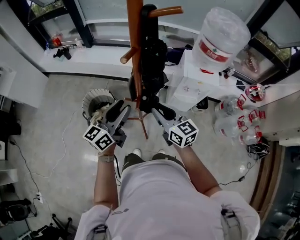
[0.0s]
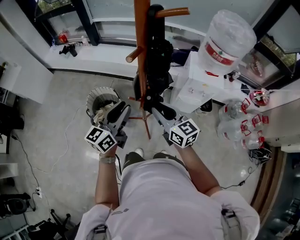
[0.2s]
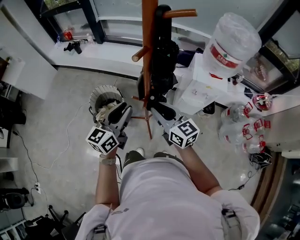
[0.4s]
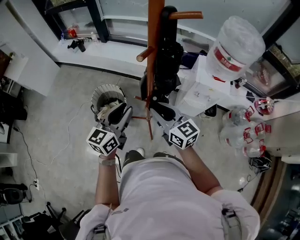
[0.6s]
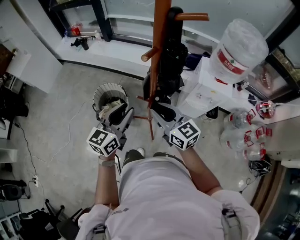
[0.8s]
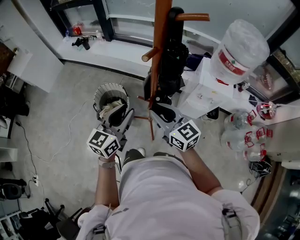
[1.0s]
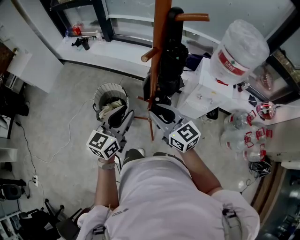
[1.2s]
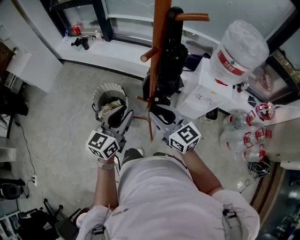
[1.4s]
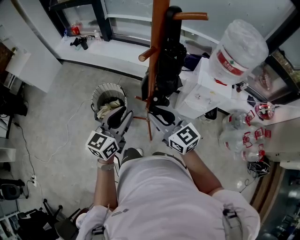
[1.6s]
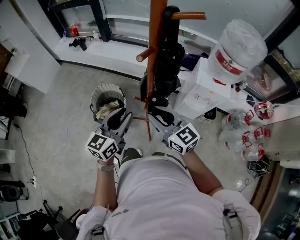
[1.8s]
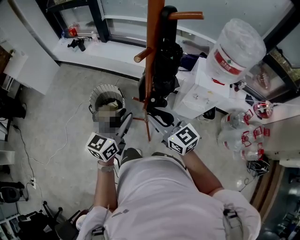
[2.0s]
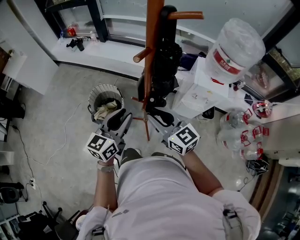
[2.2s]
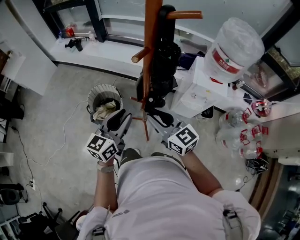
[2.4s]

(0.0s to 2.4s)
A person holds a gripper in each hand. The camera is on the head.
0.0s - 1.2s: The right gripper goes some 5 cm to the left.
1.2s - 2.4s: There are only small adjustments of the grippers.

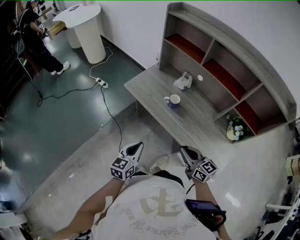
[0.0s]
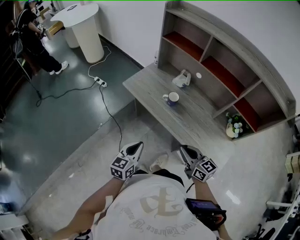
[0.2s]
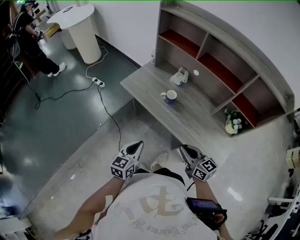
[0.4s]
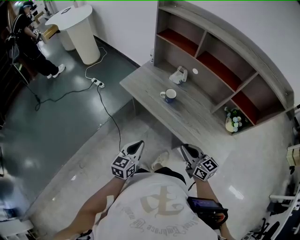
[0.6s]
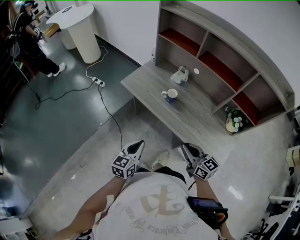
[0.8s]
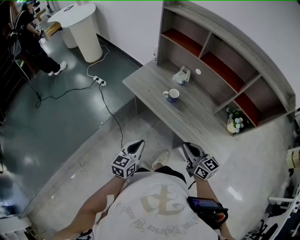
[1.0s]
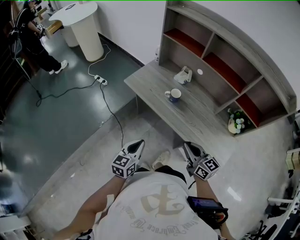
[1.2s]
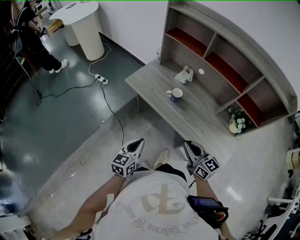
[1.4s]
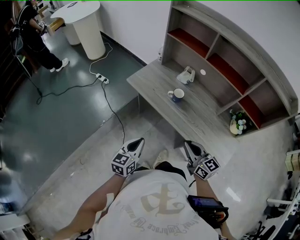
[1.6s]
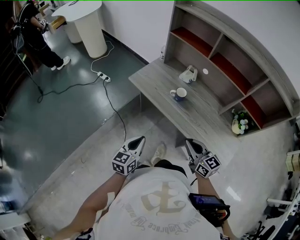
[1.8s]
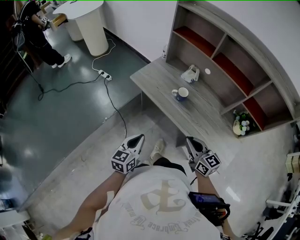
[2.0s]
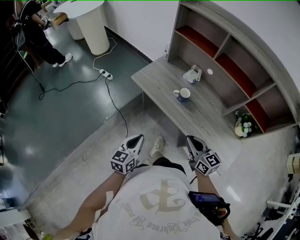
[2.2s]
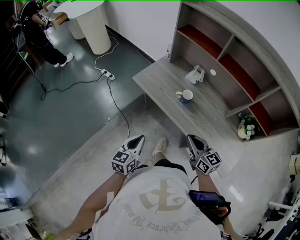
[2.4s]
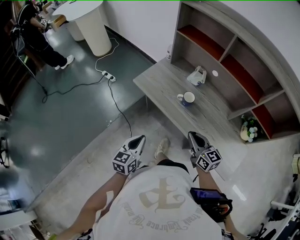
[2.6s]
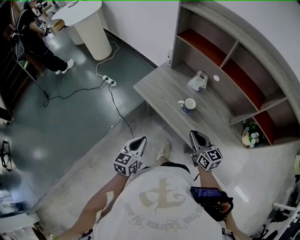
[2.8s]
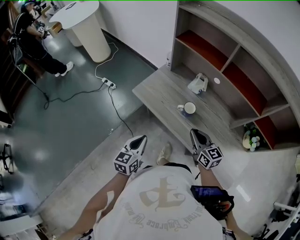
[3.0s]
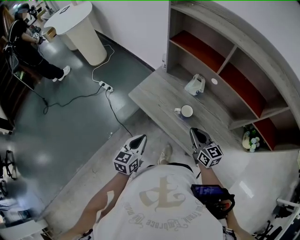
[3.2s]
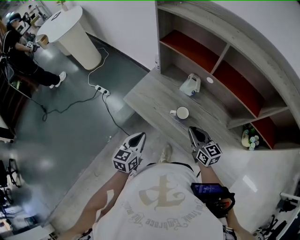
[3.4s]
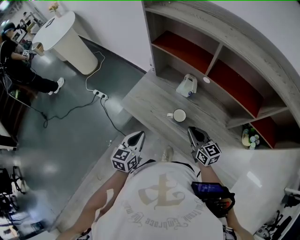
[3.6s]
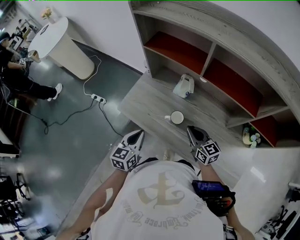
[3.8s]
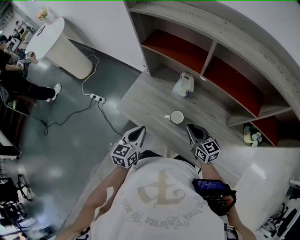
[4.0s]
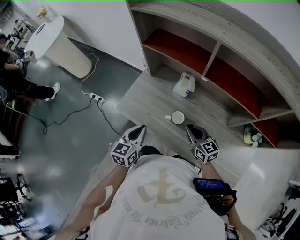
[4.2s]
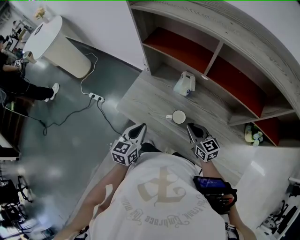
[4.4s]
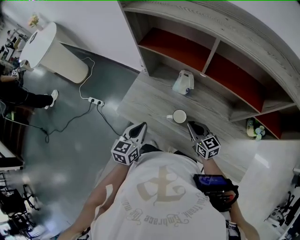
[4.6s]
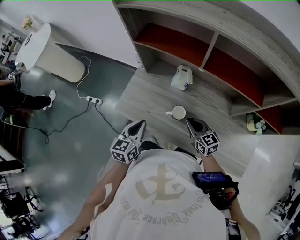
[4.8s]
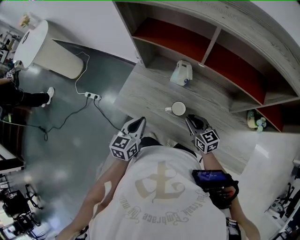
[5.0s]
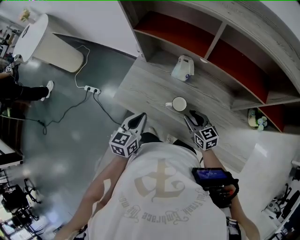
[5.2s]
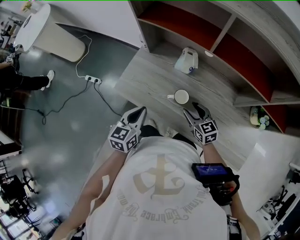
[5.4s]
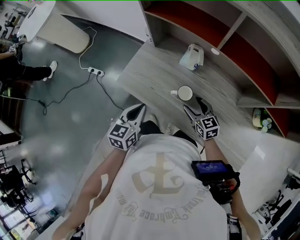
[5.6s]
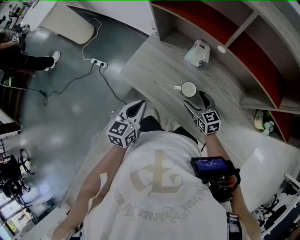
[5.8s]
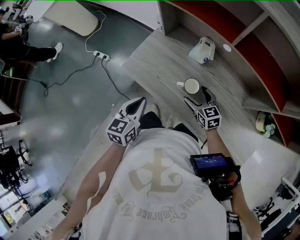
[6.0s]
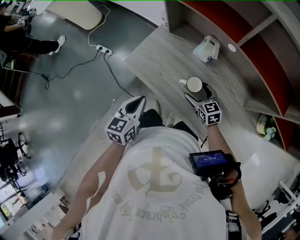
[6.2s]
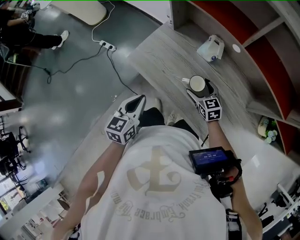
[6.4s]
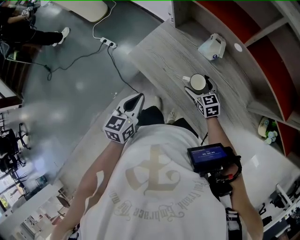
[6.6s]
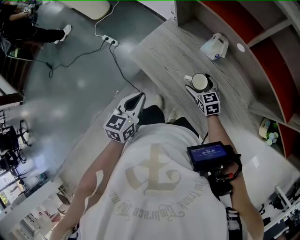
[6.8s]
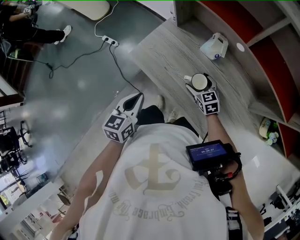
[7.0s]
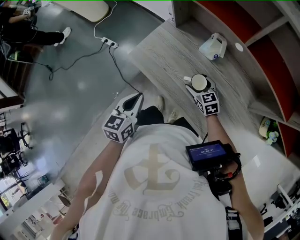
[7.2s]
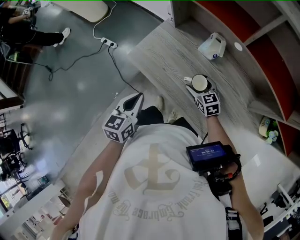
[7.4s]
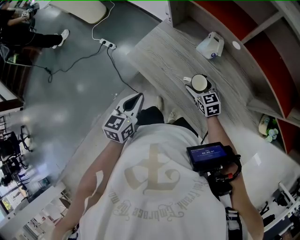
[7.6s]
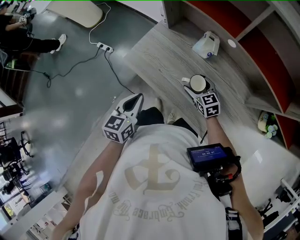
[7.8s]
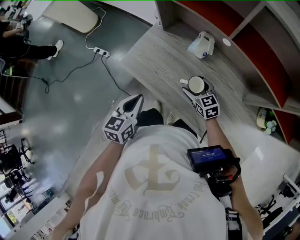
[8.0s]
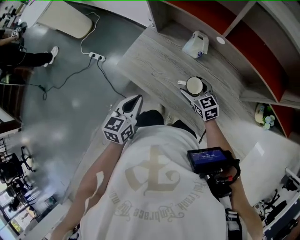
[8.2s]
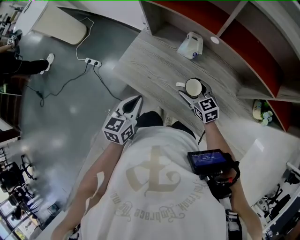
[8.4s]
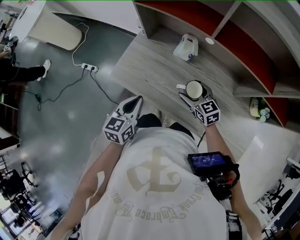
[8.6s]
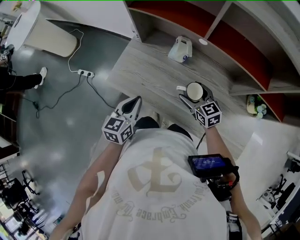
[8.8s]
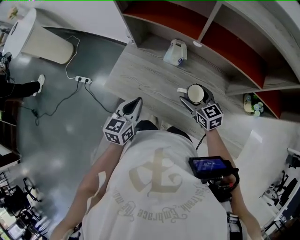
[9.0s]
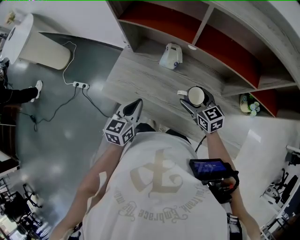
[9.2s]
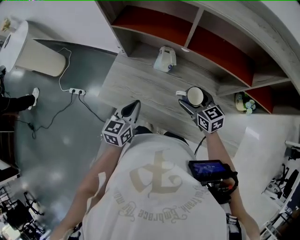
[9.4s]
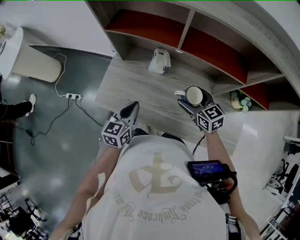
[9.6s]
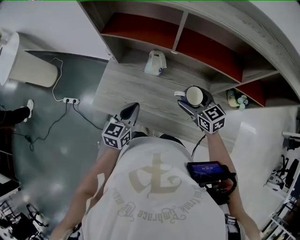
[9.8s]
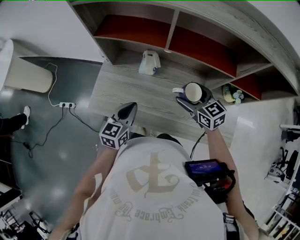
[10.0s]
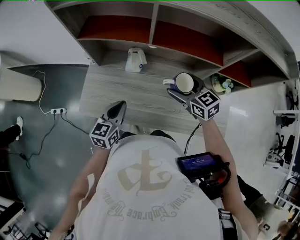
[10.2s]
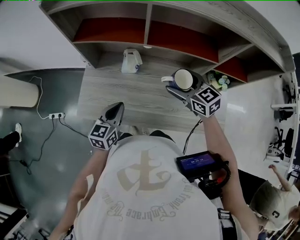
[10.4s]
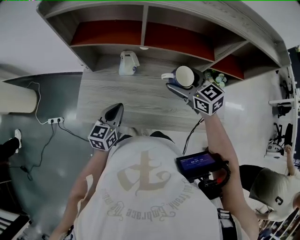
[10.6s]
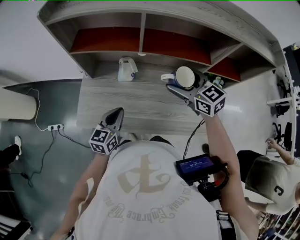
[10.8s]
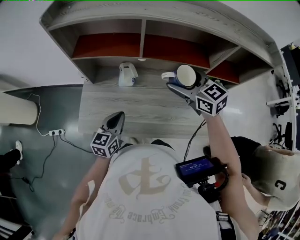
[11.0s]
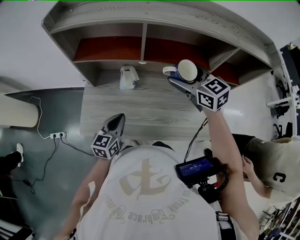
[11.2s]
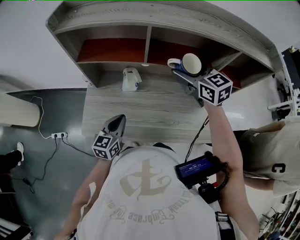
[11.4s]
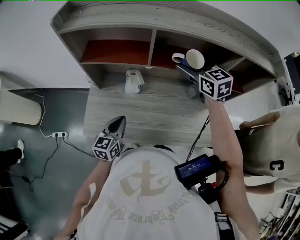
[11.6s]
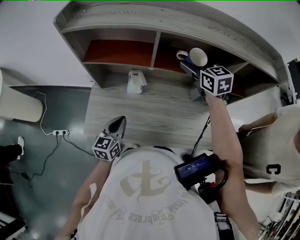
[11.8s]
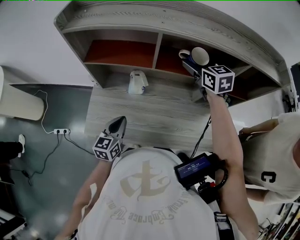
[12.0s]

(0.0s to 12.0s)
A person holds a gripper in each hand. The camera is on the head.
0.0s - 1.6s: There are only small adjustments of the grippers.
1.6s - 3.0s: The two grippers go roughly 20 cm forward.
3.0s - 4.4s: The right gripper is displaced forward, downward and to the right by approximately 15 cm, while the left gripper goes roughly 20 cm forward.
4.4s - 6.0s: The right gripper goes about 10 cm downward, and opens up. The left gripper changes place by some 5 cm.
7.6s - 9.0s: The left gripper is displaced to the right and forward by roughly 10 cm. Meanwhile the right gripper is displaced upward and to the right by approximately 15 cm.
9.0s - 10.4s: The right gripper travels upward and to the right by some 15 cm. Meanwhile the left gripper travels to the right by some 5 cm.
10.4s - 12.0s: The right gripper is displaced forward and upward by about 20 cm, and changes its angle by some 20 degrees.

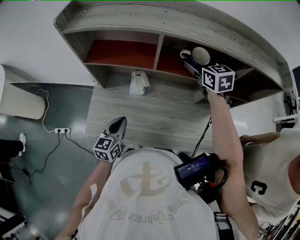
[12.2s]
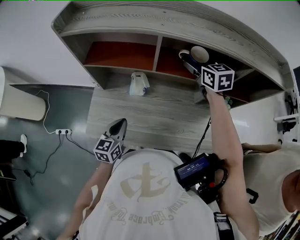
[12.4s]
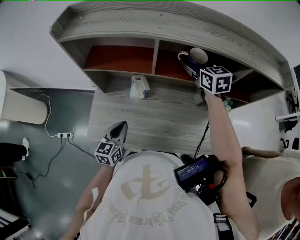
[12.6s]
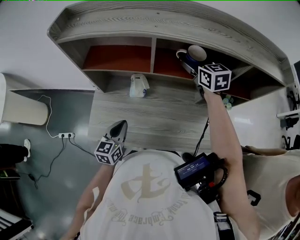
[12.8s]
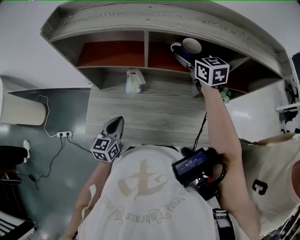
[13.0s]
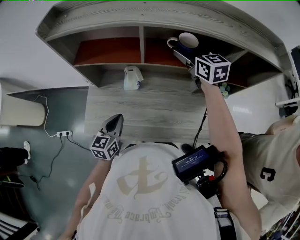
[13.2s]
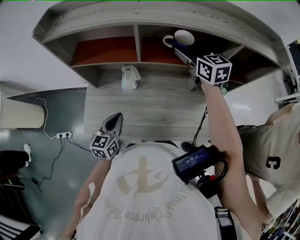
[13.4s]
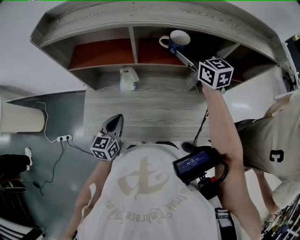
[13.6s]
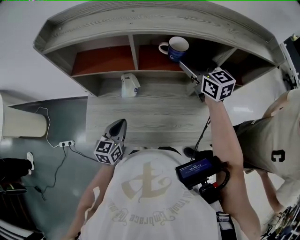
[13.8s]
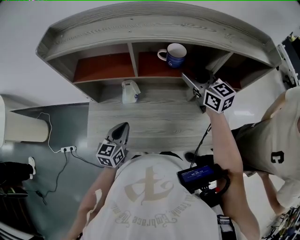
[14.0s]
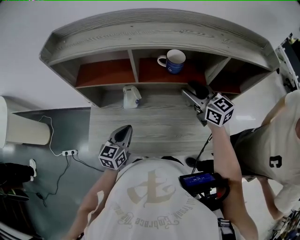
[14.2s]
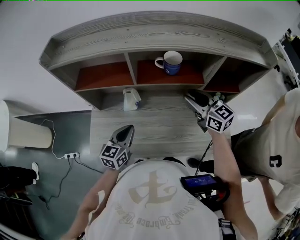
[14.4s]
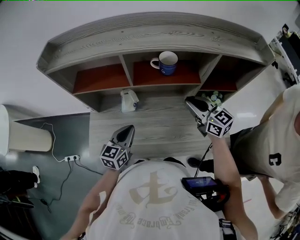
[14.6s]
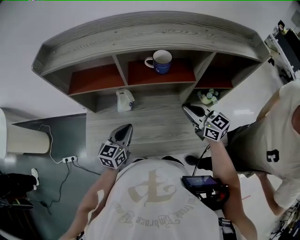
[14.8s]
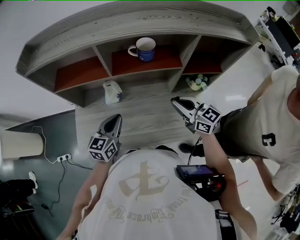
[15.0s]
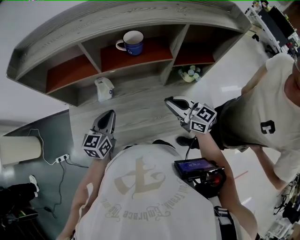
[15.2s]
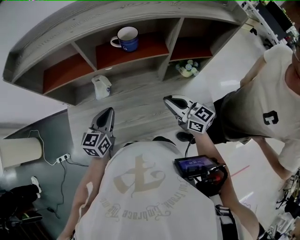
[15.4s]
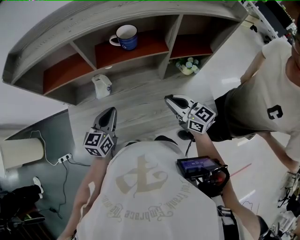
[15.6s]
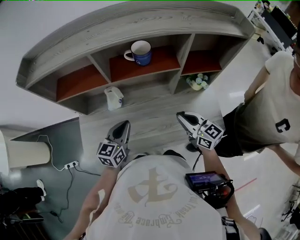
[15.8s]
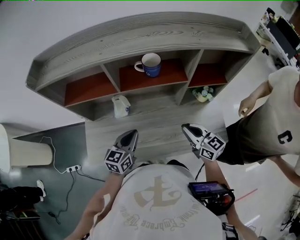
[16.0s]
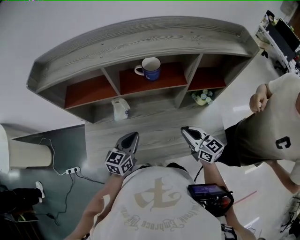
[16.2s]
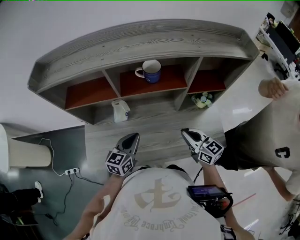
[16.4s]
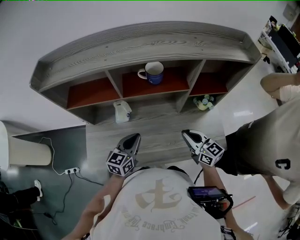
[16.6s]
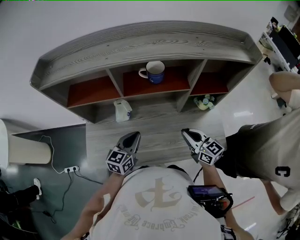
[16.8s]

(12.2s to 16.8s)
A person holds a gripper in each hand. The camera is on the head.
12.2s - 13.8s: The right gripper travels backward by some 5 cm.
13.8s - 15.2s: The left gripper heads to the right, covering roughly 10 cm; the right gripper heads backward and downward, covering some 20 cm, and closes up.
15.2s - 16.8s: The grippers move only a little.

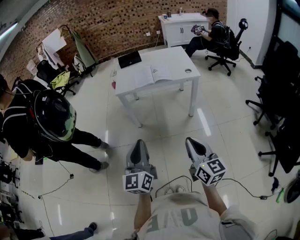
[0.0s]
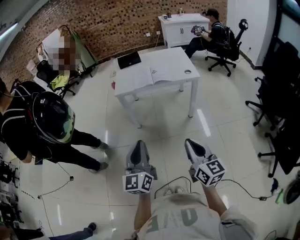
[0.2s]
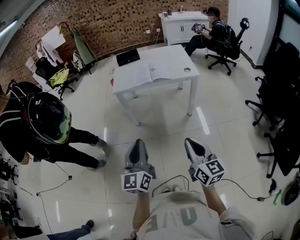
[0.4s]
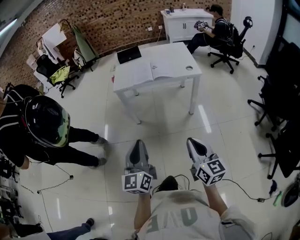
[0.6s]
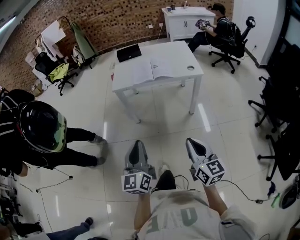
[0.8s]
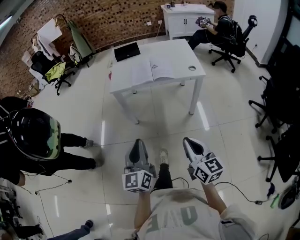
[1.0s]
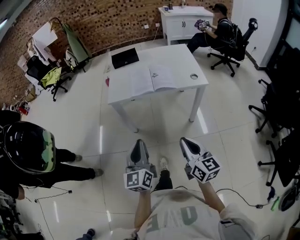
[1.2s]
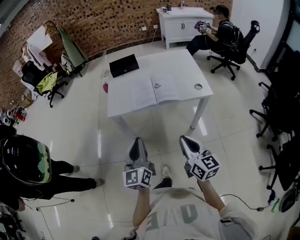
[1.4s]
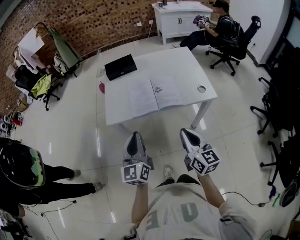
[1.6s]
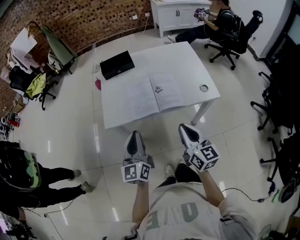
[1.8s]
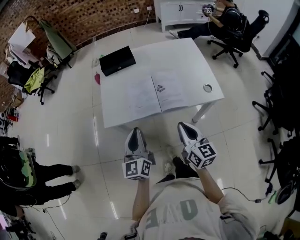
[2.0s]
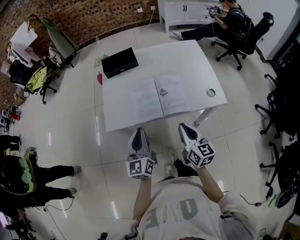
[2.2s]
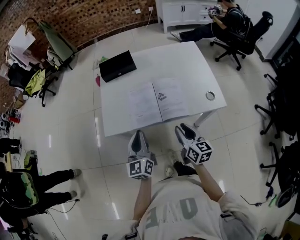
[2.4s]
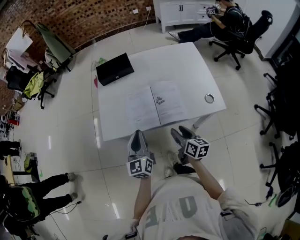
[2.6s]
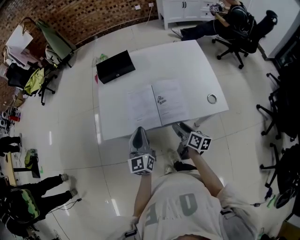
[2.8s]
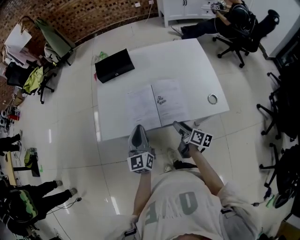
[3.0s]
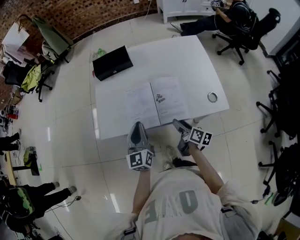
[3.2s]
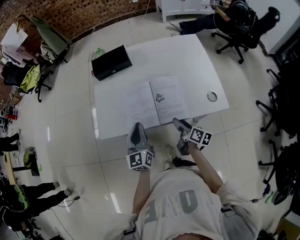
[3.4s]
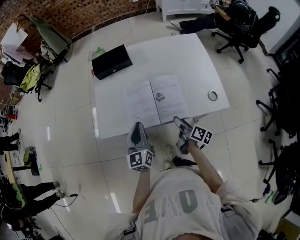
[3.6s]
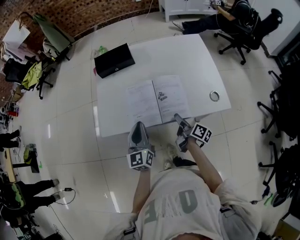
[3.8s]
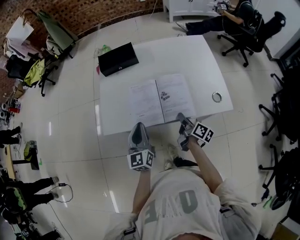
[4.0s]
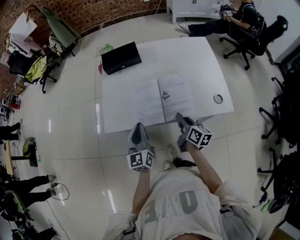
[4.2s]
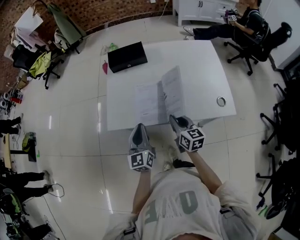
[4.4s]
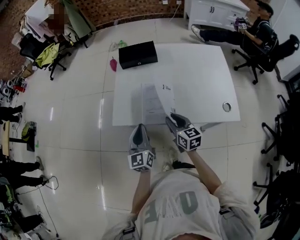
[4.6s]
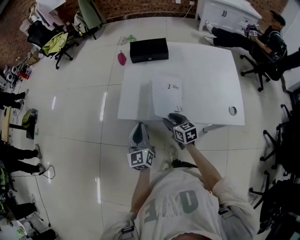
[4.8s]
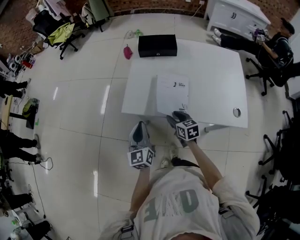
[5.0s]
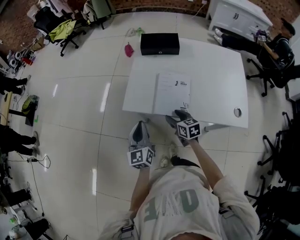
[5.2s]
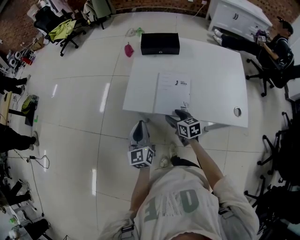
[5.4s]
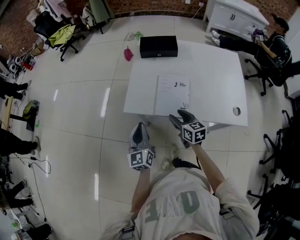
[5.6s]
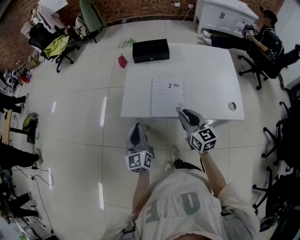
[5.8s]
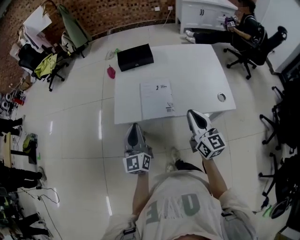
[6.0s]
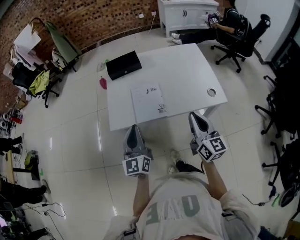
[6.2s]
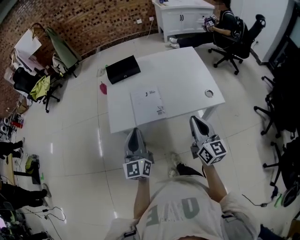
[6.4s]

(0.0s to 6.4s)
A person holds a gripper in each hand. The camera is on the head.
0.0s - 1.6s: The two grippers travel together, forward, approximately 40 cm.
1.6s - 3.2s: The two grippers go some 25 cm forward and downward. The right gripper rotates around the line of its fingers by some 40 degrees, clockwise from behind, and opens up.
3.2s - 4.8s: The two grippers go about 15 cm to the left. The right gripper rolls counterclockwise, seen from behind, by roughly 50 degrees, and closes its fingers.
4.8s - 6.4s: The left gripper moves upward, some 10 cm, and changes its angle by about 20 degrees; the right gripper goes some 20 cm upward, angles its fingers upward, by approximately 30 degrees, and closes up.
